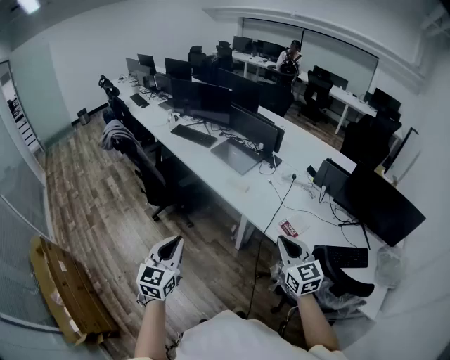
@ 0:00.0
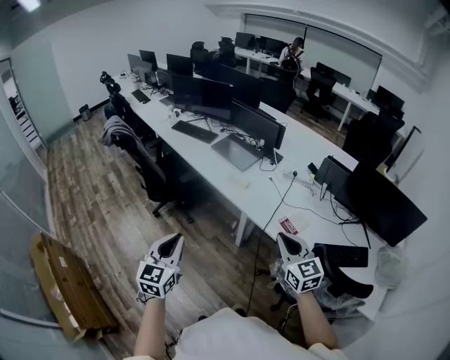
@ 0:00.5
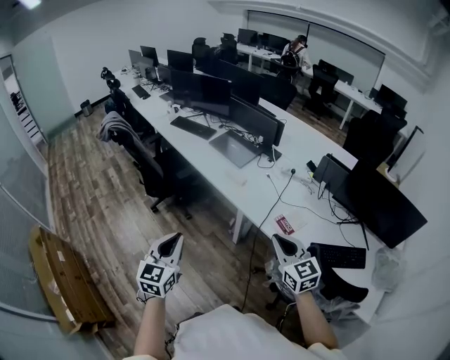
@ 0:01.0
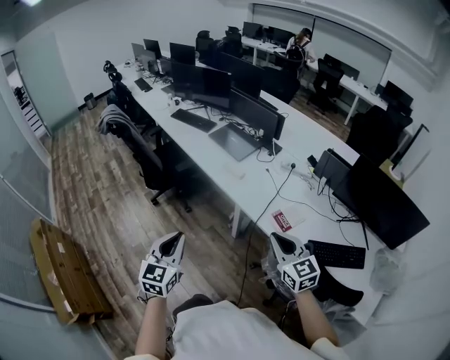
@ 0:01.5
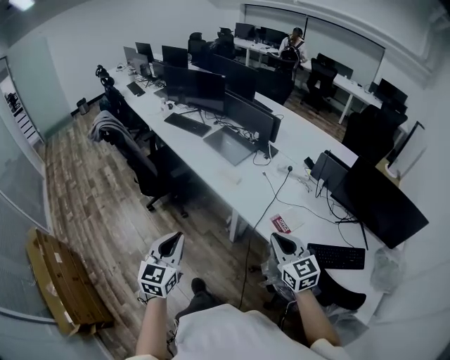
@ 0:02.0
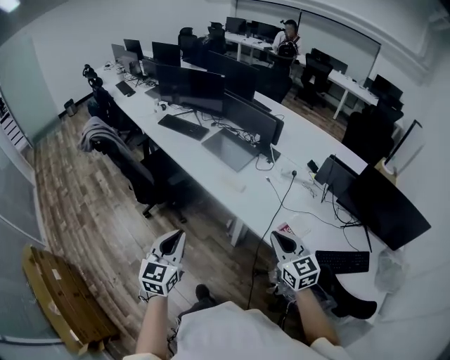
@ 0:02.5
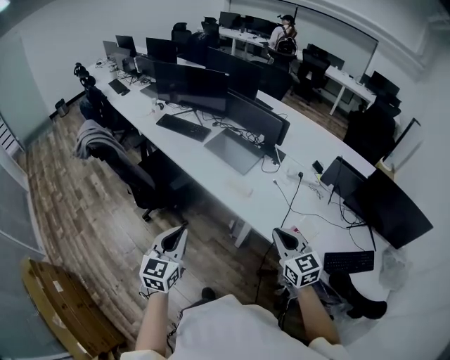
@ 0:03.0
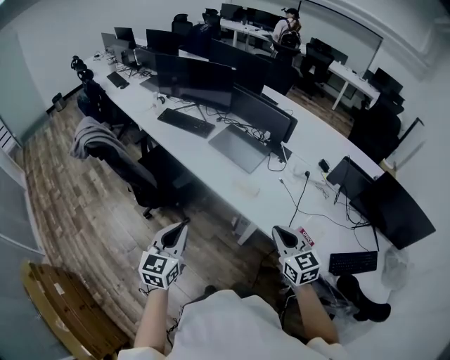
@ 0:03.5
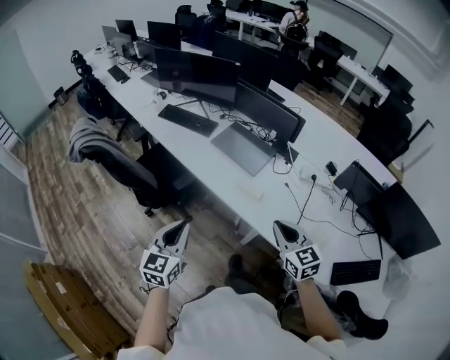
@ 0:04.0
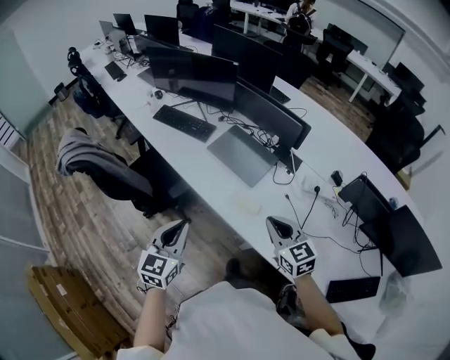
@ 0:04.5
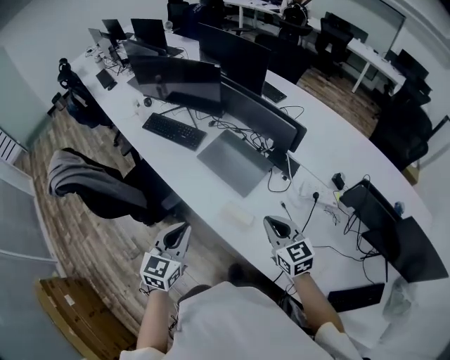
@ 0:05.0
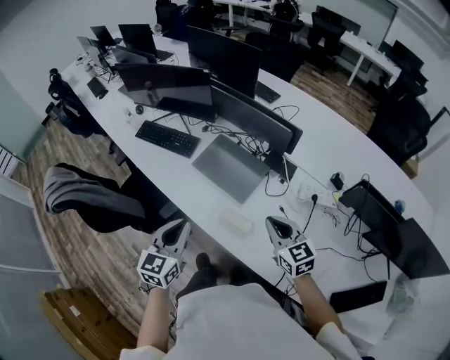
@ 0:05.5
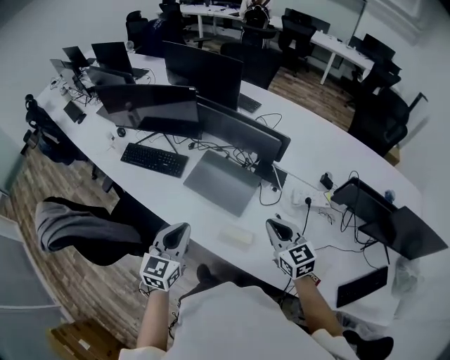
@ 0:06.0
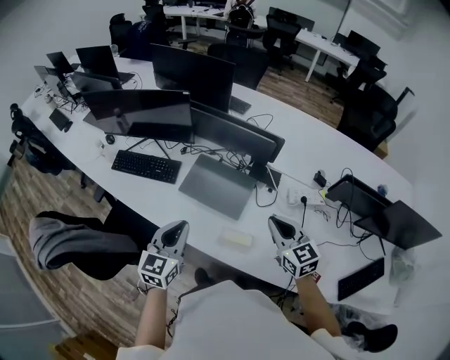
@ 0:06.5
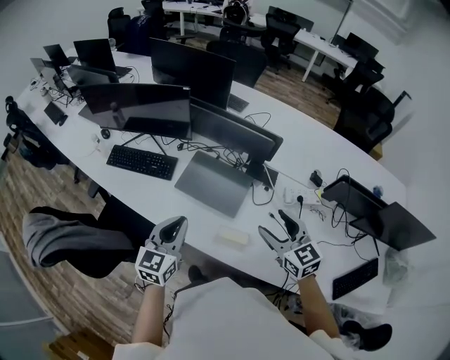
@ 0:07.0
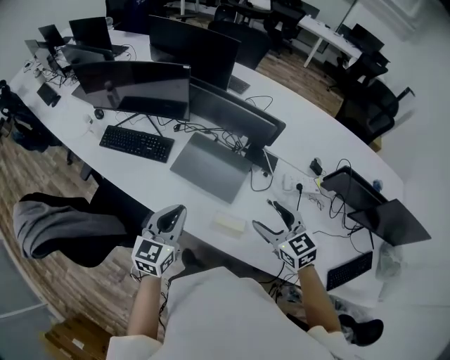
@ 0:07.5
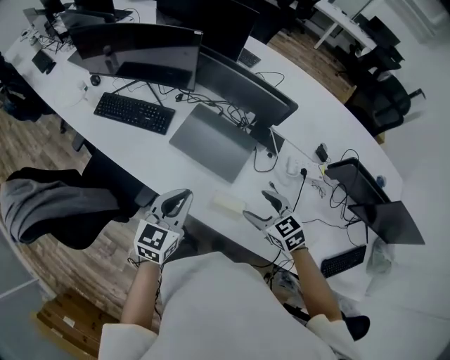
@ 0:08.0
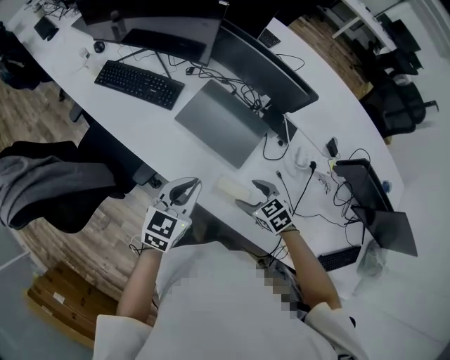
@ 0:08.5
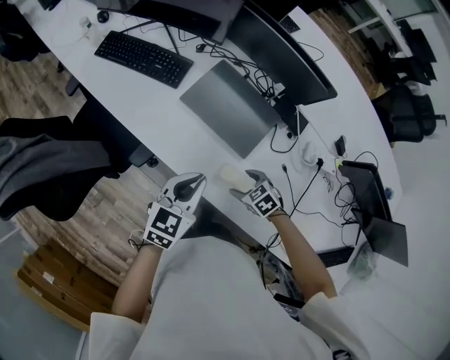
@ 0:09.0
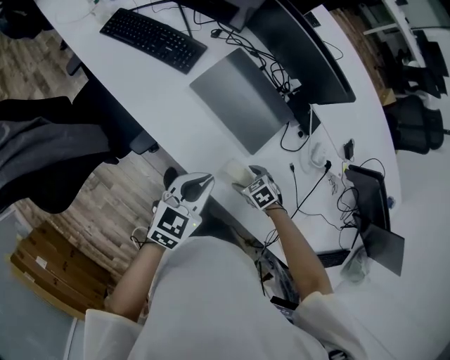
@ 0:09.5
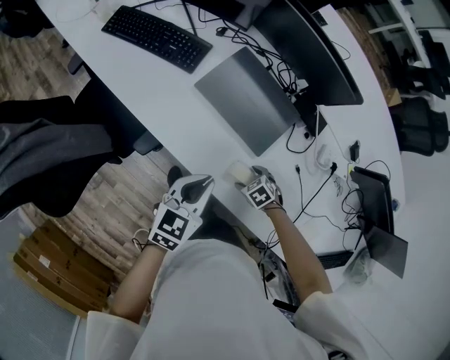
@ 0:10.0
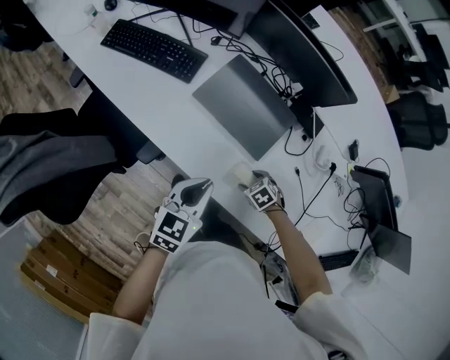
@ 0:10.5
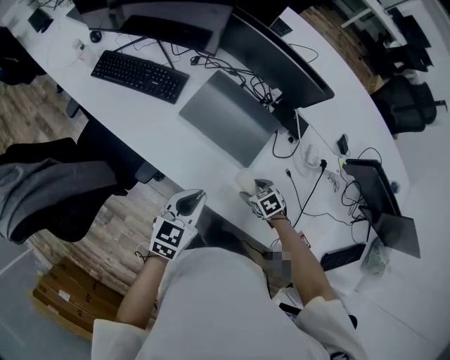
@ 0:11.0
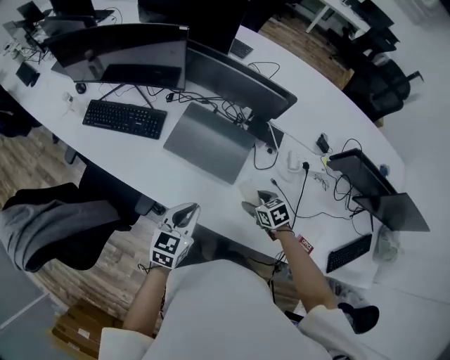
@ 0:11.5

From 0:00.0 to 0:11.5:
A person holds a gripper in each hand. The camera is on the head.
From 0:00.0 to 0:02.0: Both grippers move to the right, approximately 5 cm.
From 0:02.0 to 0:04.0: The two grippers go approximately 35 cm forward and to the left.
From 0:04.0 to 0:06.0: Both grippers travel together forward, approximately 30 cm.
From 0:06.0 to 0:07.5: The right gripper opens its fingers, while the left gripper changes place by approximately 5 cm.
From 0:07.5 to 0:09.5: The left gripper shifts about 20 cm downward, while the right gripper moves downward, roughly 40 cm, and tips its fingers downward by approximately 40 degrees.
From 0:09.5 to 0:11.5: The right gripper moves upward, roughly 15 cm, and swivels about 30 degrees.

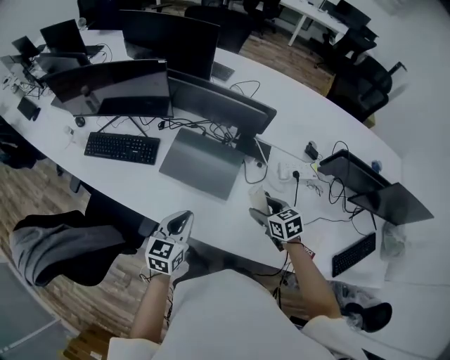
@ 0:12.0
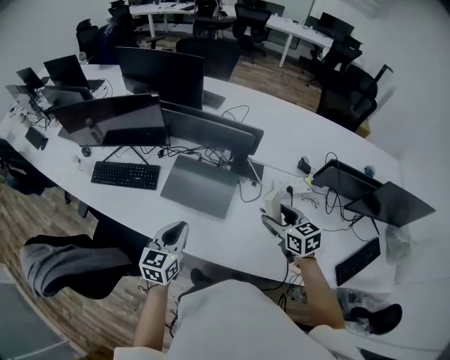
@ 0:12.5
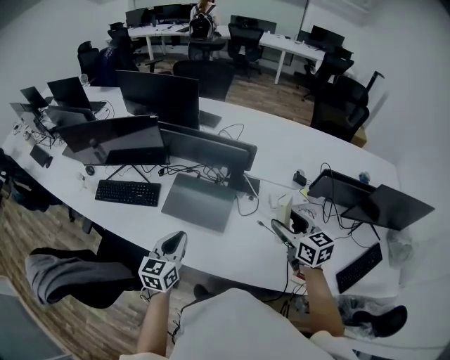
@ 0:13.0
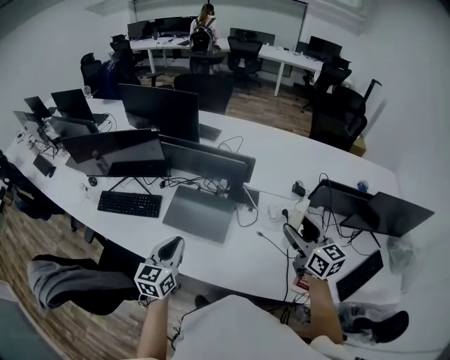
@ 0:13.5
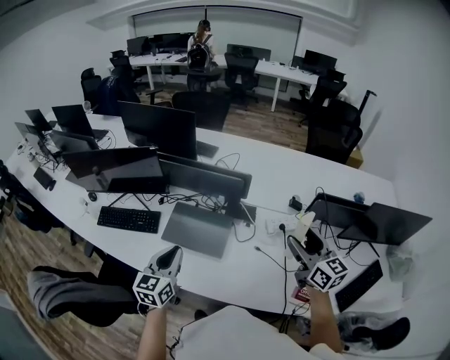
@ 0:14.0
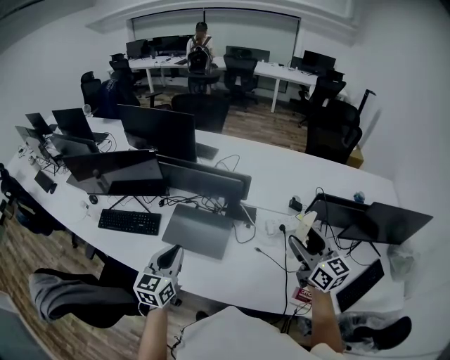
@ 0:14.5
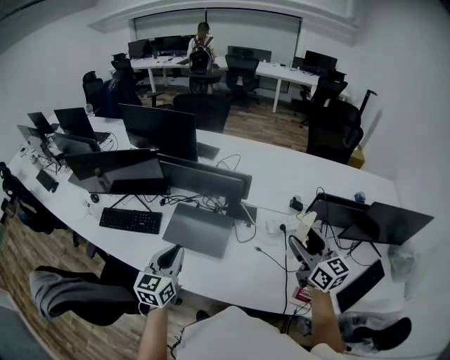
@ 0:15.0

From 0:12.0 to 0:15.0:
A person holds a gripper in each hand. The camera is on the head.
From 0:12.0 to 0:13.5: The right gripper travels upward and to the right by about 30 cm, and tilts its fingers roughly 40 degrees upward. Meanwhile the left gripper travels upward by about 15 cm.
From 0:13.5 to 0:15.0: There are only small adjustments of the grippers.

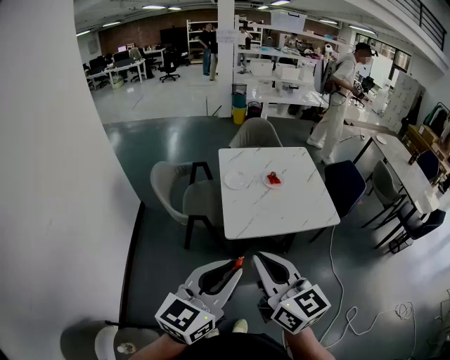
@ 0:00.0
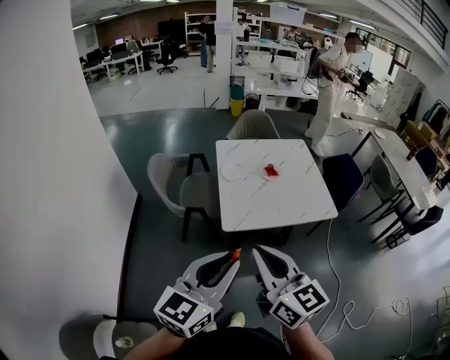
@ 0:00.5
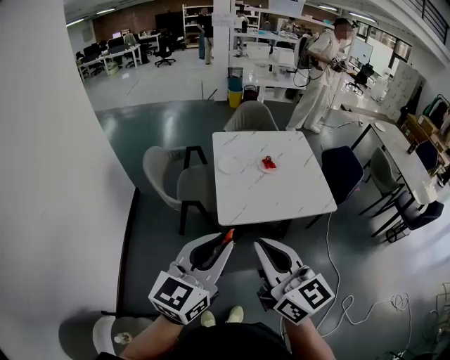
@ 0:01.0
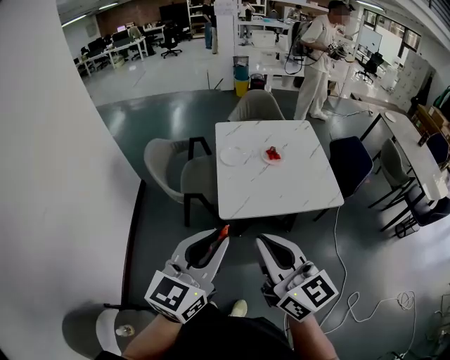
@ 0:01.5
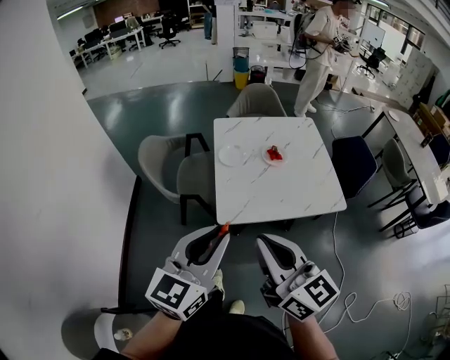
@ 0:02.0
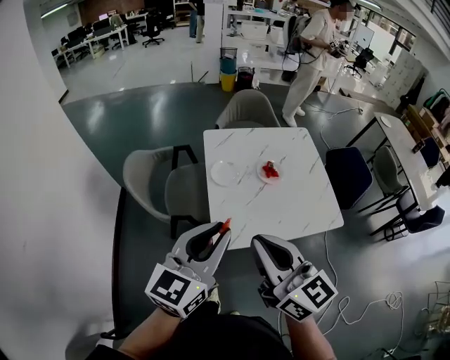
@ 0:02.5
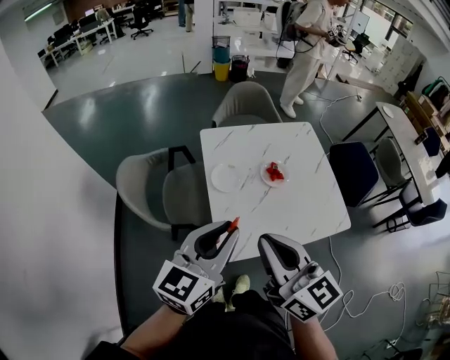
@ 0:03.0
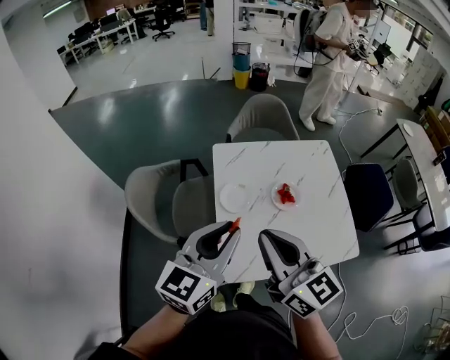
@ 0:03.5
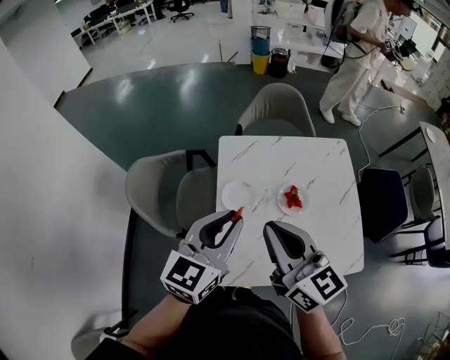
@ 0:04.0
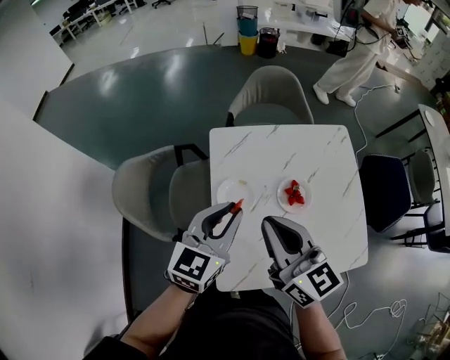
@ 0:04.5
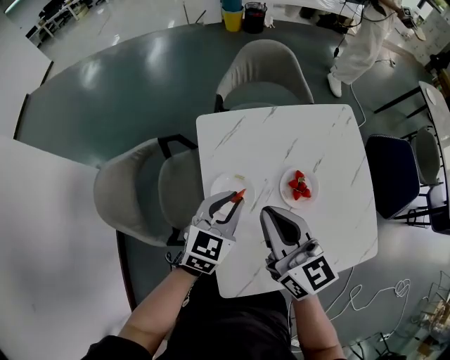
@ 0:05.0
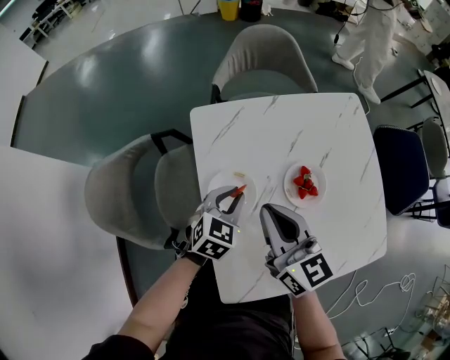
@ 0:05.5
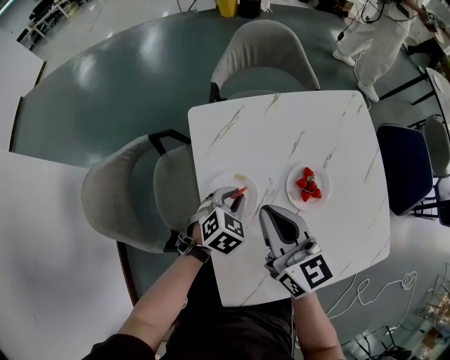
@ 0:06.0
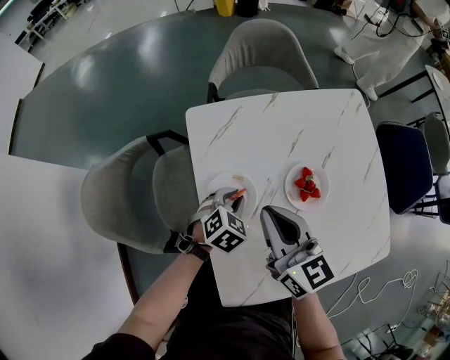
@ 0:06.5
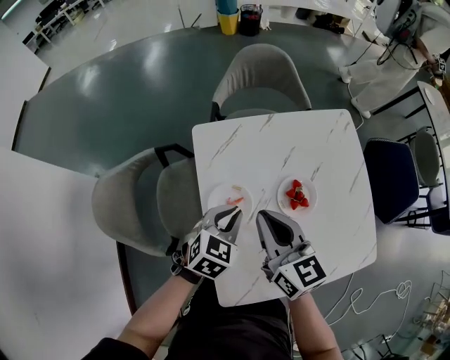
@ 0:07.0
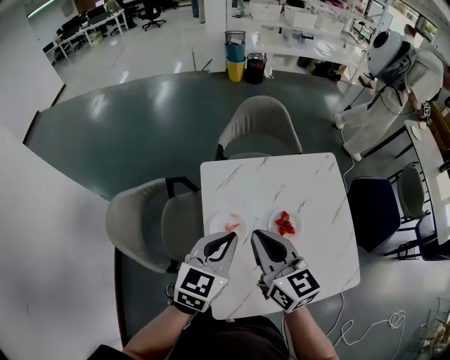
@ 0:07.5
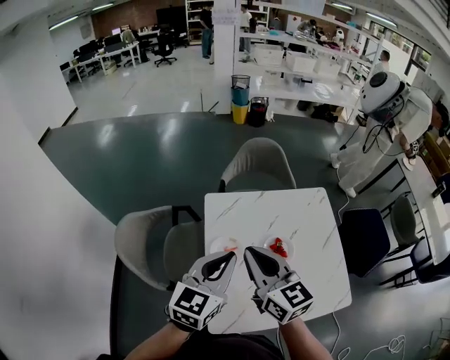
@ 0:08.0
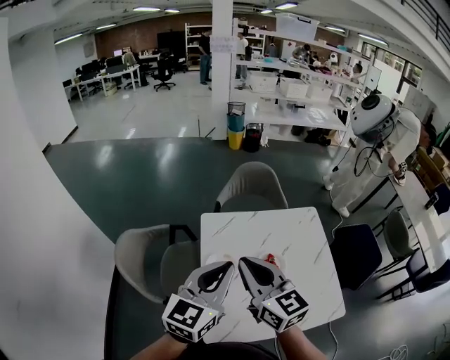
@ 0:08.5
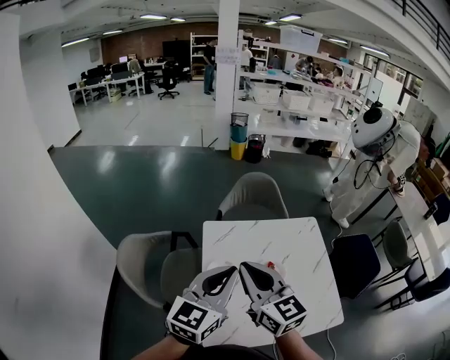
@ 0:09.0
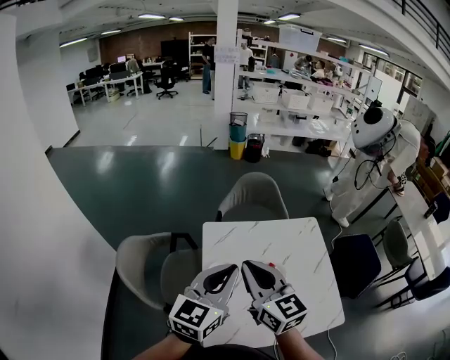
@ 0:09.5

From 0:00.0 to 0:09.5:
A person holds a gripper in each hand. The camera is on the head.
From 0:00.0 to 0:02.0: The grippers both shift forward by approximately 10 cm.
From 0:02.0 to 0:04.0: Both grippers move forward, approximately 40 cm.
From 0:04.0 to 0:05.5: Both grippers move downward and forward, approximately 30 cm. The left gripper tips its fingers downward by approximately 30 degrees.
From 0:05.5 to 0:07.5: The left gripper is displaced upward by about 25 cm, and changes its angle by about 20 degrees. The right gripper is displaced upward by some 10 cm.
From 0:07.5 to 0:09.5: The grippers both shift upward and backward by approximately 15 cm.

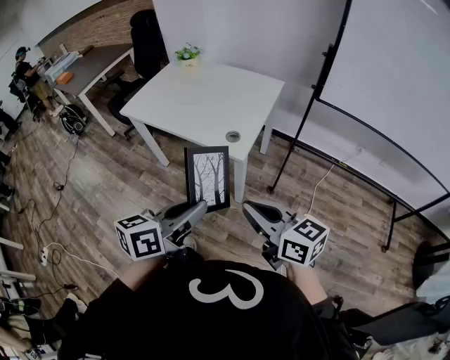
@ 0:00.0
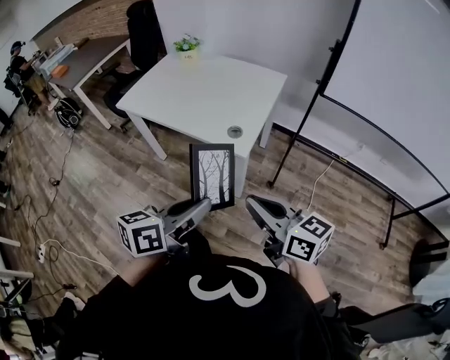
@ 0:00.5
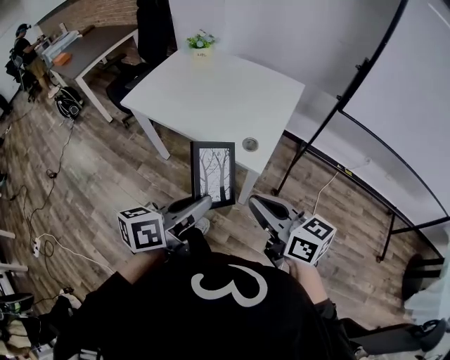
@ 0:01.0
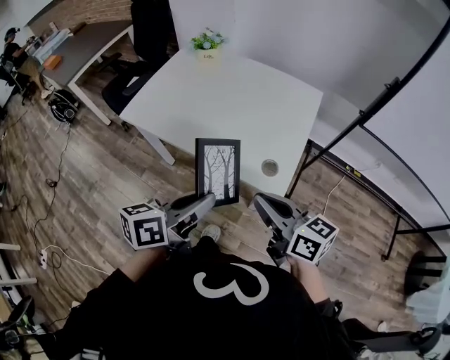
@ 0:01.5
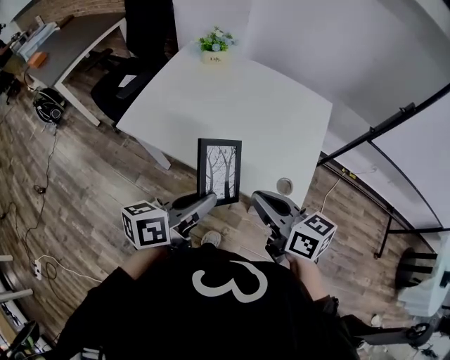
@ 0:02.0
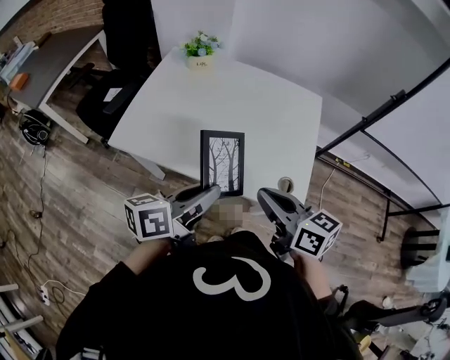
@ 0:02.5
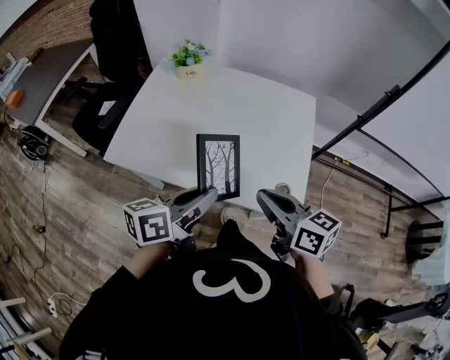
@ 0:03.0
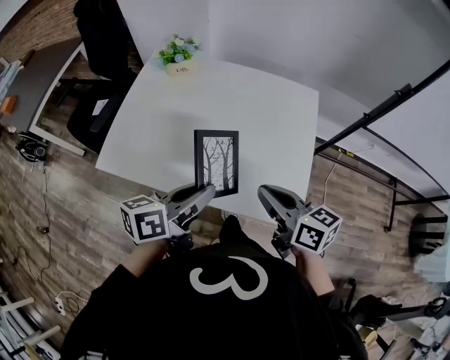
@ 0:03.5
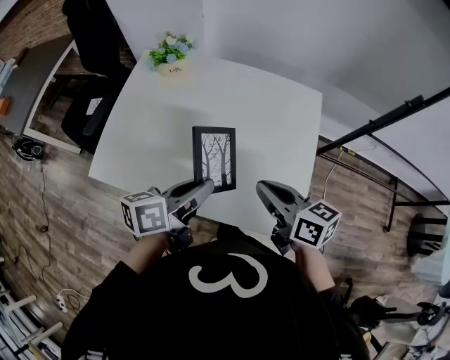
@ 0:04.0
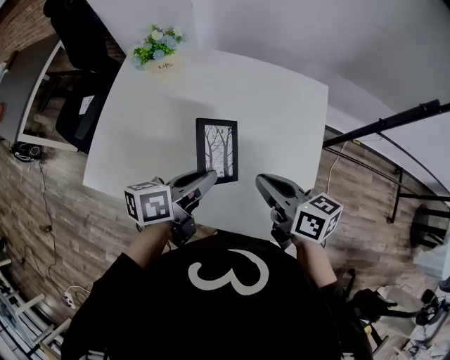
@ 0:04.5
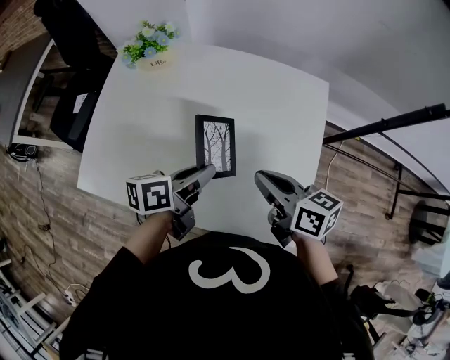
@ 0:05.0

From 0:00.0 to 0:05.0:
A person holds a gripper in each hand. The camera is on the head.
From 0:00.0 to 0:02.5: The two grippers go approximately 40 cm forward and to the left.
From 0:02.5 to 0:05.0: The two grippers go about 25 cm forward and downward.
